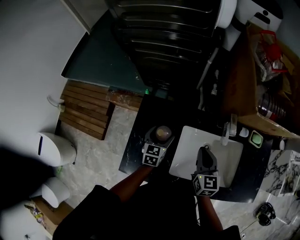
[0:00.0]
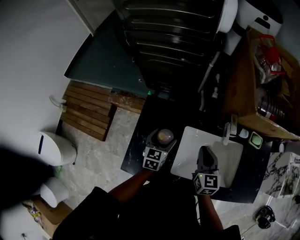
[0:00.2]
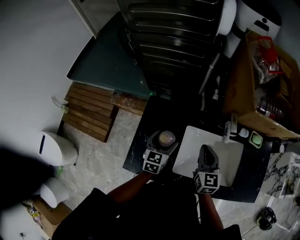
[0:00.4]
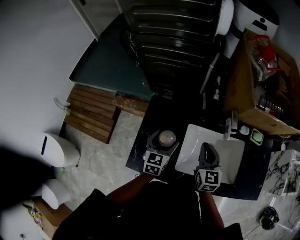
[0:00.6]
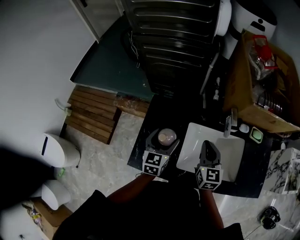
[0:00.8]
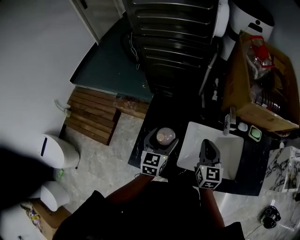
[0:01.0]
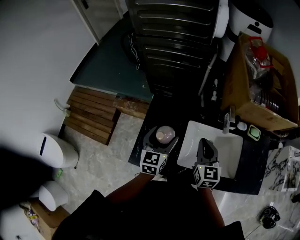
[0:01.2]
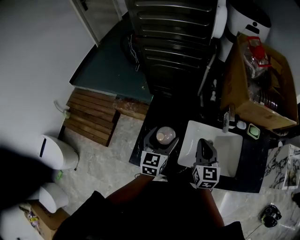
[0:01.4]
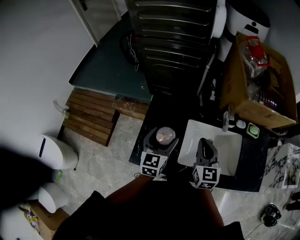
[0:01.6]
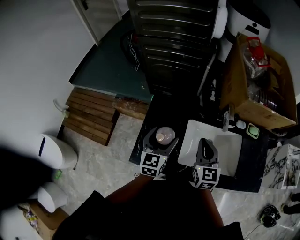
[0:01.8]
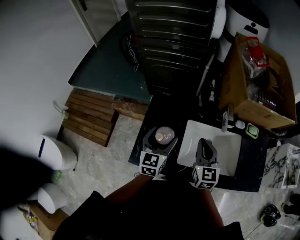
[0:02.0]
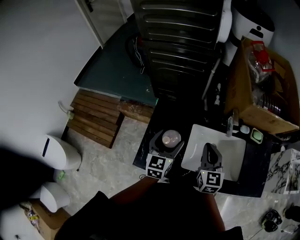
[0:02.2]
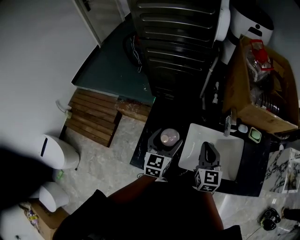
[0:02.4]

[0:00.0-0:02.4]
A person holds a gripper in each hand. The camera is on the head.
0:00.0 to 0:01.2: The right gripper shifts about 10 cm upward and backward; the left gripper is displaced upward and backward by about 20 cm.
0:01.2 to 0:02.4: The grippers make only small movements.

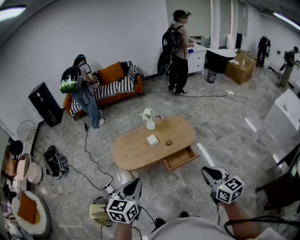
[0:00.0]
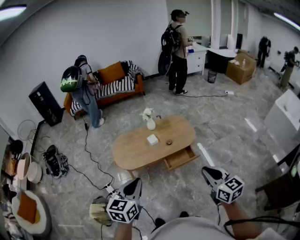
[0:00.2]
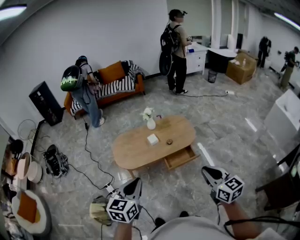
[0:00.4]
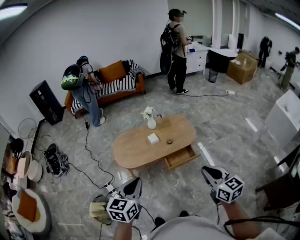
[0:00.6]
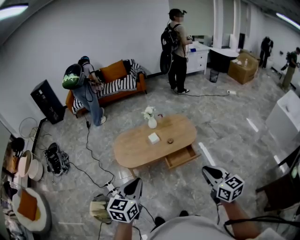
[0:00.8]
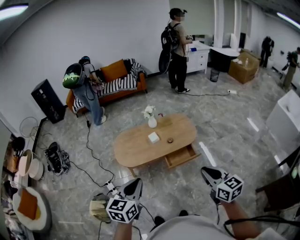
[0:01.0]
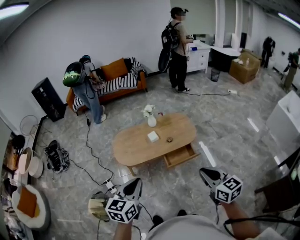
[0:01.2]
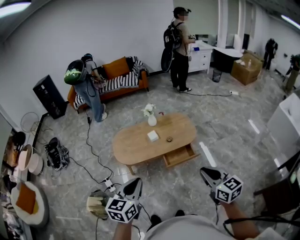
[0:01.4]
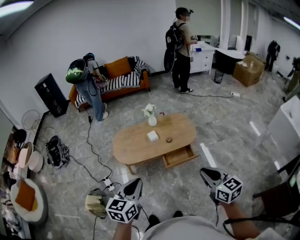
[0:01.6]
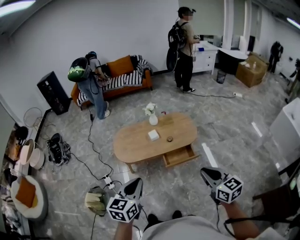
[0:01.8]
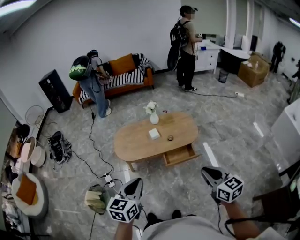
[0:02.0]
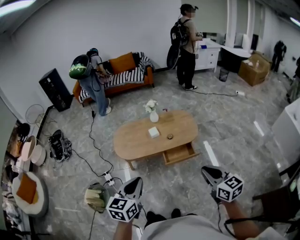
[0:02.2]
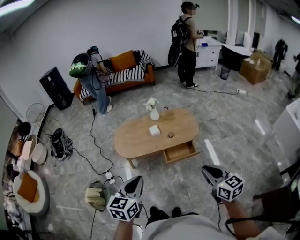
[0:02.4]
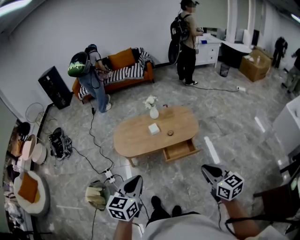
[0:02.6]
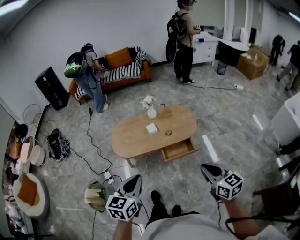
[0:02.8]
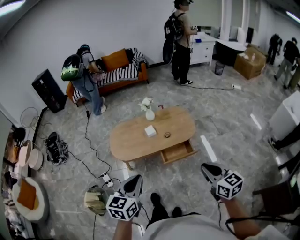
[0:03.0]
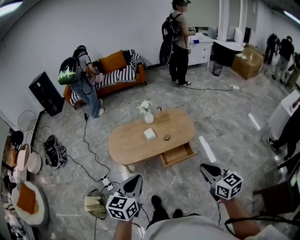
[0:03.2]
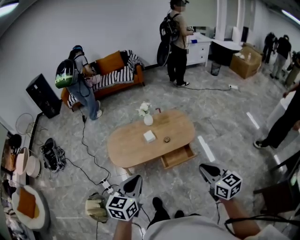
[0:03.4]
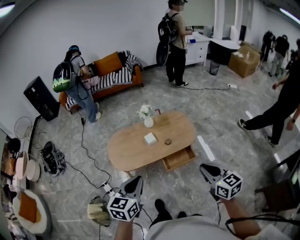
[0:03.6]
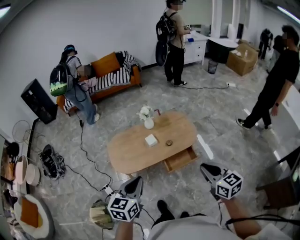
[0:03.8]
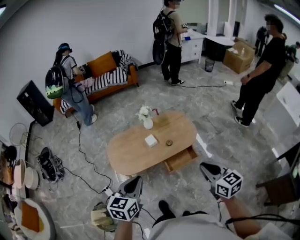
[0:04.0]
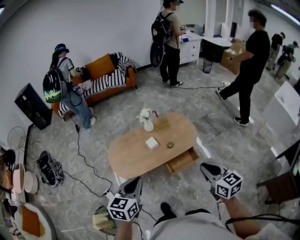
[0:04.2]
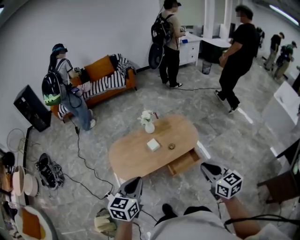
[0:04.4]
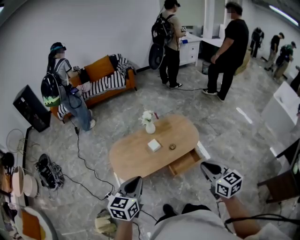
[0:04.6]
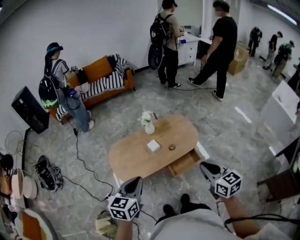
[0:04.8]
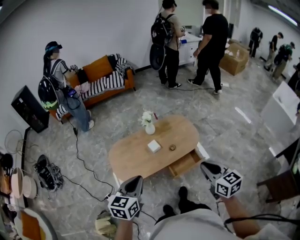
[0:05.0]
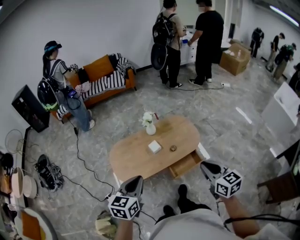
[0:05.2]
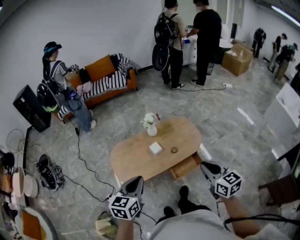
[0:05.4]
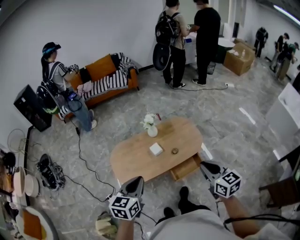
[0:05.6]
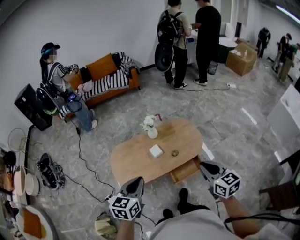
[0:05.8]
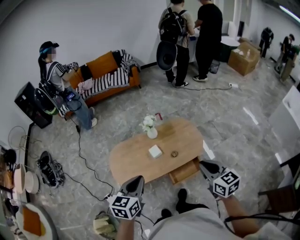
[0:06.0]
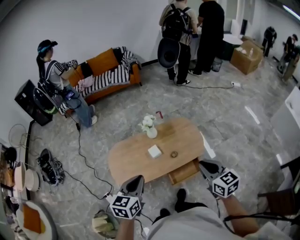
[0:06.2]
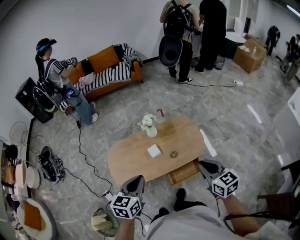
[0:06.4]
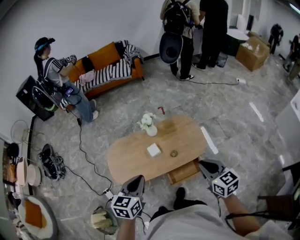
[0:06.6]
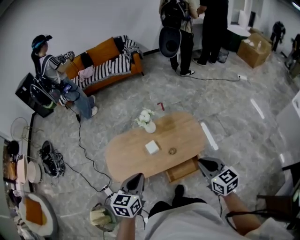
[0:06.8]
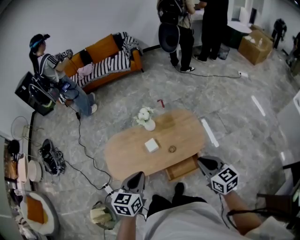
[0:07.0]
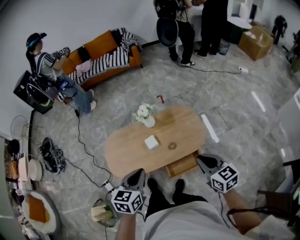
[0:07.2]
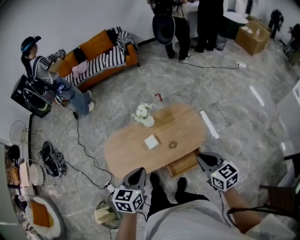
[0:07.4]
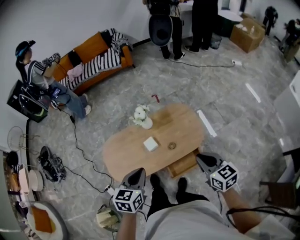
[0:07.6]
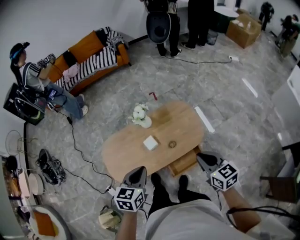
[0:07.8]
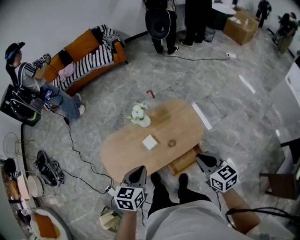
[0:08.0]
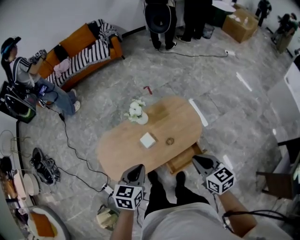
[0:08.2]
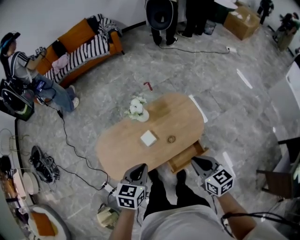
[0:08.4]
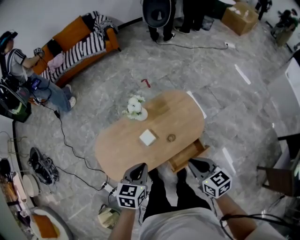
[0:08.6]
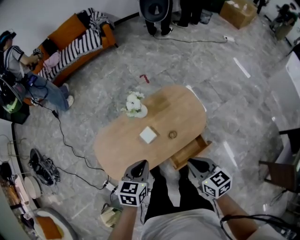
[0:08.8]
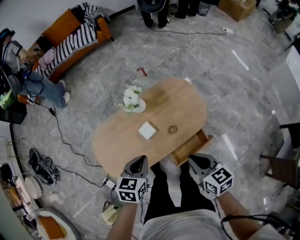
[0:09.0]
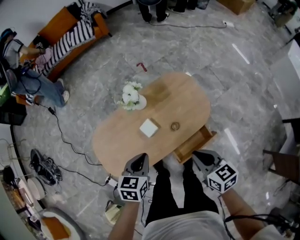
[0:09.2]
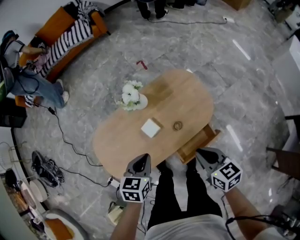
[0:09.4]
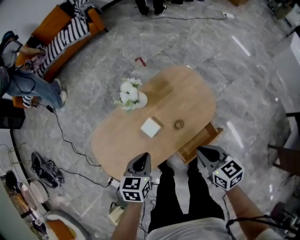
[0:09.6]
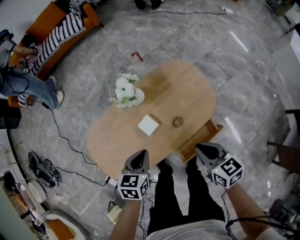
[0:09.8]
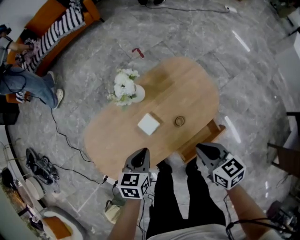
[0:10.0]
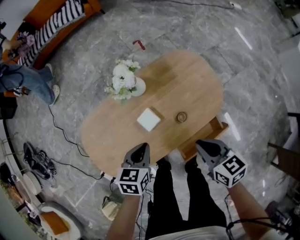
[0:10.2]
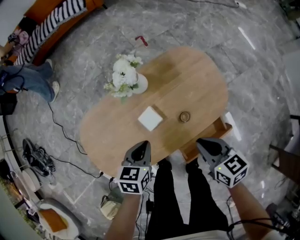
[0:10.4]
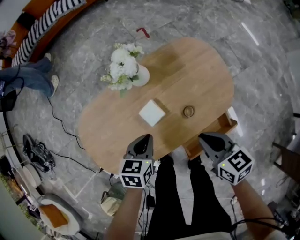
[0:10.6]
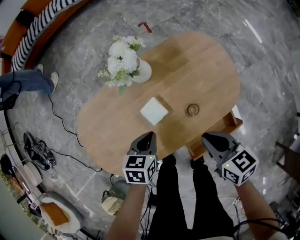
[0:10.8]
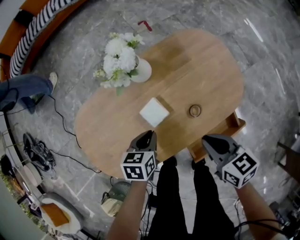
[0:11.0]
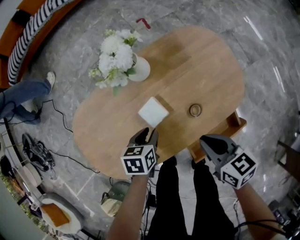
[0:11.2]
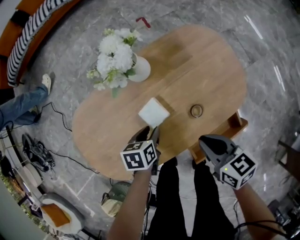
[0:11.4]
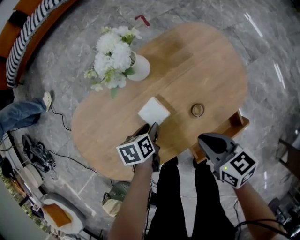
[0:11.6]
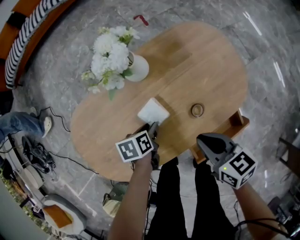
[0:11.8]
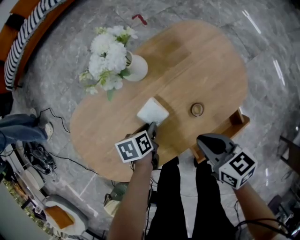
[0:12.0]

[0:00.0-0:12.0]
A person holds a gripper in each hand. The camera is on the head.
0:00.0 to 0:01.6: The left gripper shifts by roughly 5 cm.
0:01.6 to 0:03.0: The right gripper moves about 5 cm.
0:03.0 to 0:04.4: Both grippers move forward and to the left, approximately 20 cm.
0:04.4 to 0:06.0: The grippers both shift forward by roughly 10 cm.
0:06.0 to 0:07.6: The left gripper moves forward, to the right and downward, approximately 15 cm, while the right gripper moves forward and downward, roughly 10 cm.
0:07.6 to 0:09.0: The right gripper shifts approximately 15 cm downward and to the left. The left gripper goes about 15 cm downward and forward.
0:09.0 to 0:10.4: The left gripper is displaced downward by roughly 20 cm, while the right gripper moves downward and forward, approximately 15 cm.
0:10.4 to 0:12.0: The right gripper heads downward, covering roughly 10 cm, while the left gripper travels downward by approximately 20 cm, swivels roughly 30 degrees, and opens its fingers.

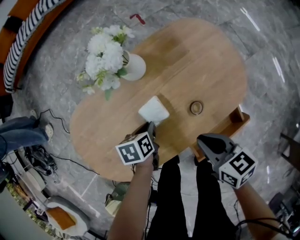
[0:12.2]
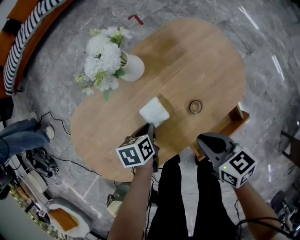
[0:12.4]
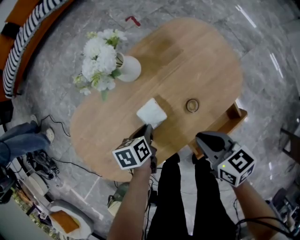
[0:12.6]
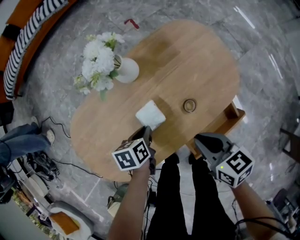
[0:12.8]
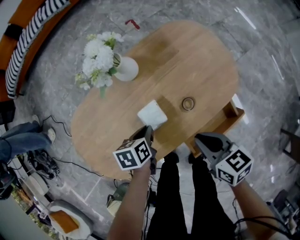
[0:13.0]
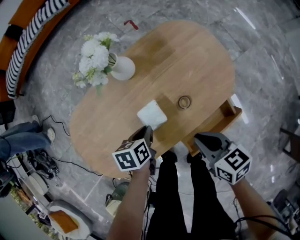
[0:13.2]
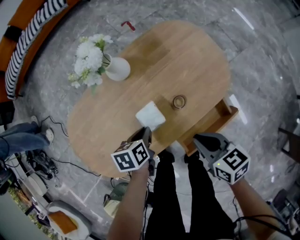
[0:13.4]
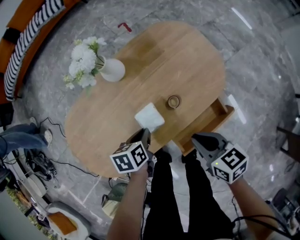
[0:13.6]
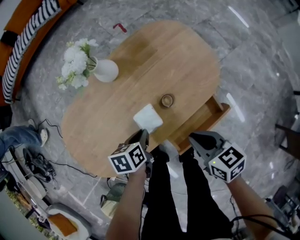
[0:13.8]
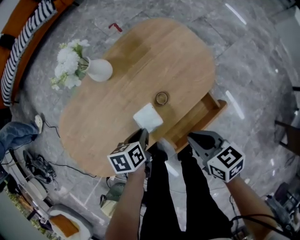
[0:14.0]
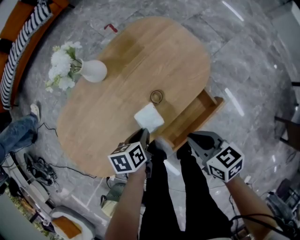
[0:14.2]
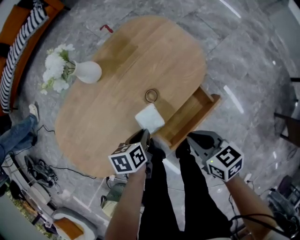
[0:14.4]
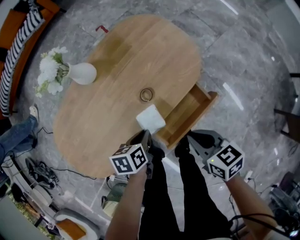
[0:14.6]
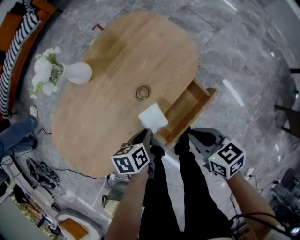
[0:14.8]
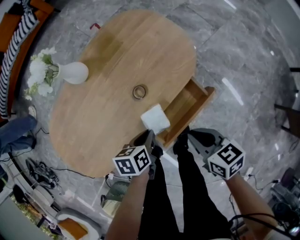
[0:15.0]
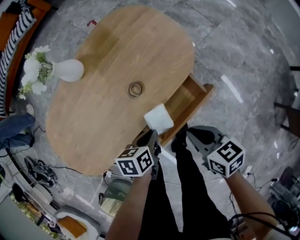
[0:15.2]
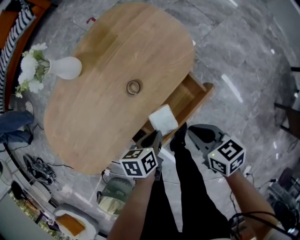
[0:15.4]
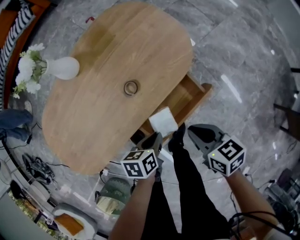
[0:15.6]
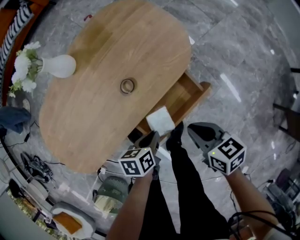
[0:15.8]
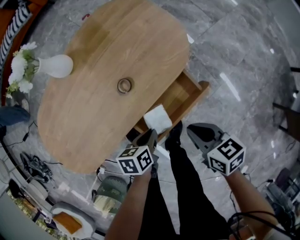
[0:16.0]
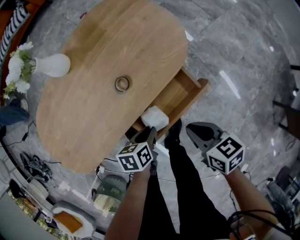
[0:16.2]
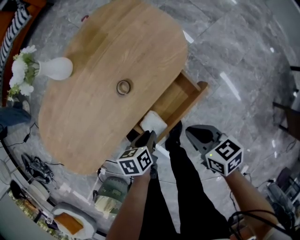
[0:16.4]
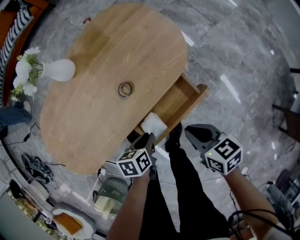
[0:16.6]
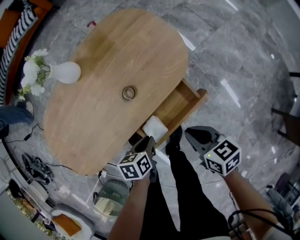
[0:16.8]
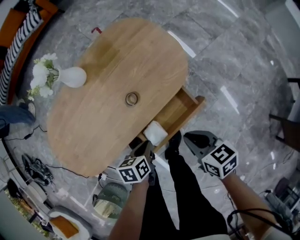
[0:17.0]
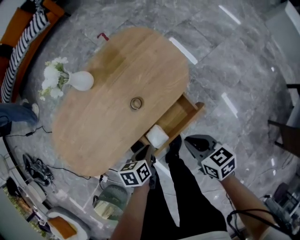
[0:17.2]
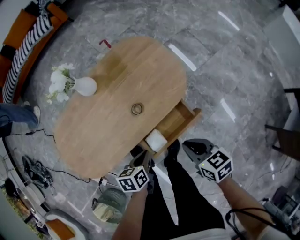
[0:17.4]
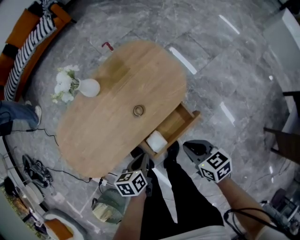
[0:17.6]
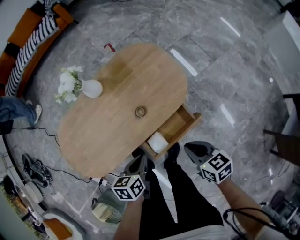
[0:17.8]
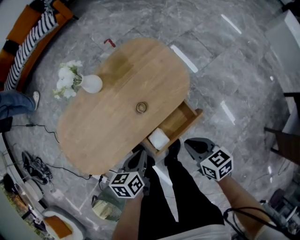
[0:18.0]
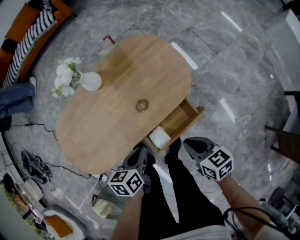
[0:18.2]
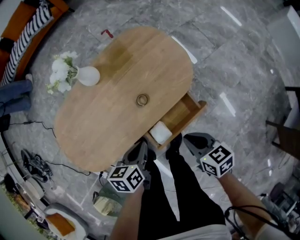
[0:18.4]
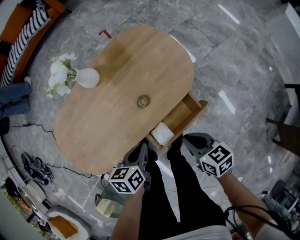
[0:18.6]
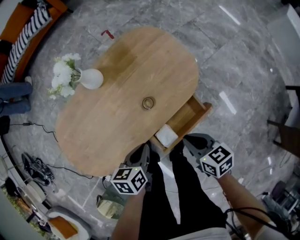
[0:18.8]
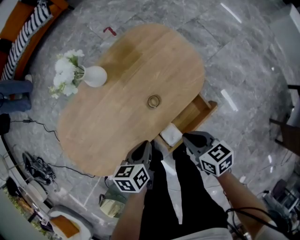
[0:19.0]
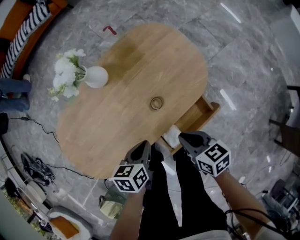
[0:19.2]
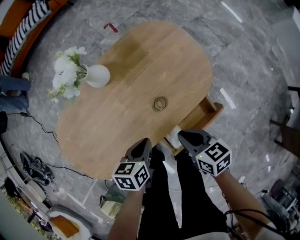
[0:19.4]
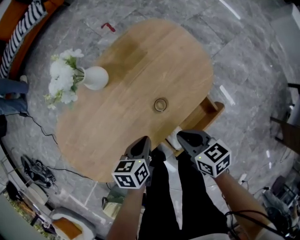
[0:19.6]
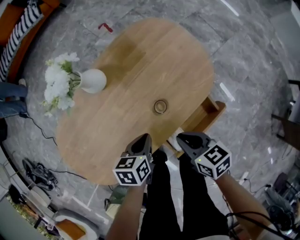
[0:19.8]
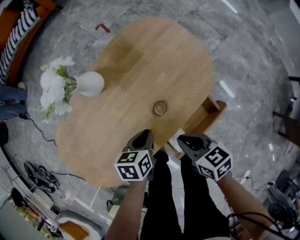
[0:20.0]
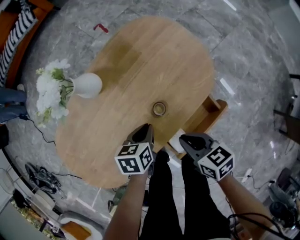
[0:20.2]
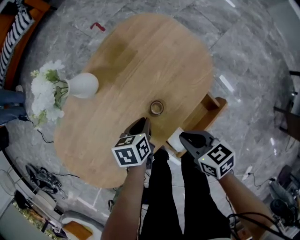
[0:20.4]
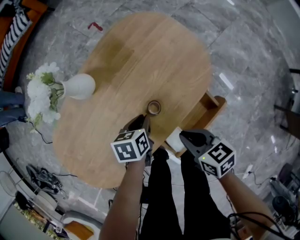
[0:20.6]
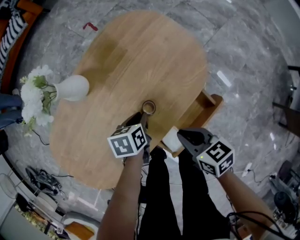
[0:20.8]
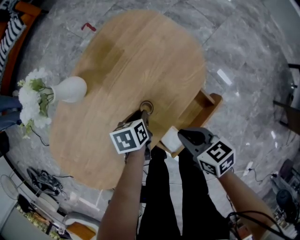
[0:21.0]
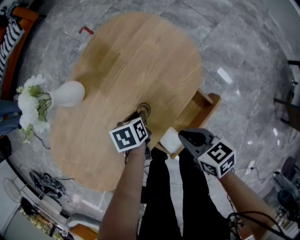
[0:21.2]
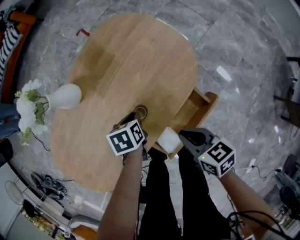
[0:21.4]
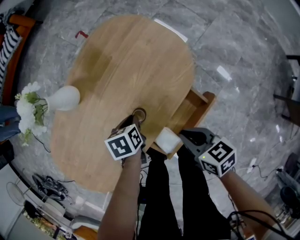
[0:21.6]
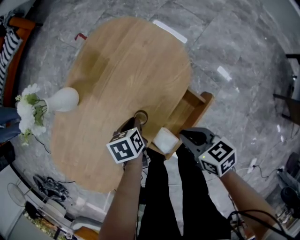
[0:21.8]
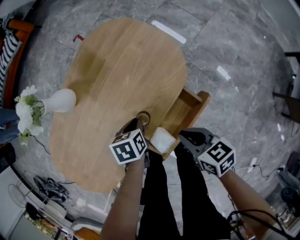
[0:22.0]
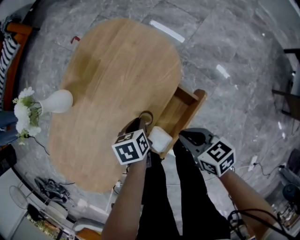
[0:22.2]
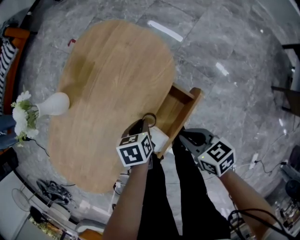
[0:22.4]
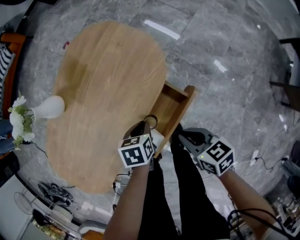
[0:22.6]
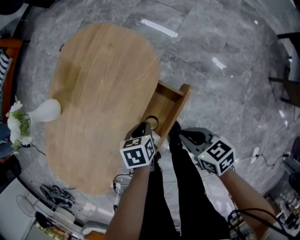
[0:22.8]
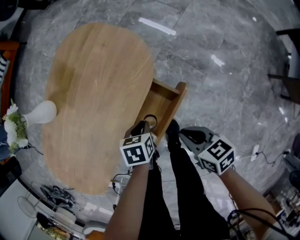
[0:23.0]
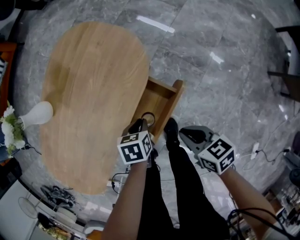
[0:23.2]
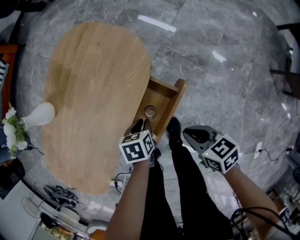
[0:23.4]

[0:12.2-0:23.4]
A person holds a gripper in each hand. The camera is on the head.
0:12.2 to 0:13.8: The right gripper is displaced to the right and backward by about 10 cm, while the left gripper travels to the right, backward and upward by approximately 10 cm.
0:13.8 to 0:15.4: The left gripper heads to the right and backward, covering approximately 20 cm; the right gripper travels to the right, backward and downward by about 15 cm.
0:15.4 to 0:17.0: There are only small adjustments of the grippers.
0:17.0 to 0:18.6: The left gripper shifts some 10 cm upward.
0:18.6 to 0:20.2: The left gripper moves forward and downward, some 15 cm. The right gripper moves to the left, forward and downward, about 10 cm.
0:20.2 to 0:21.8: The right gripper goes some 10 cm to the right; the left gripper changes place by about 5 cm.
0:21.8 to 0:23.4: The two grippers go some 15 cm to the right and backward.
